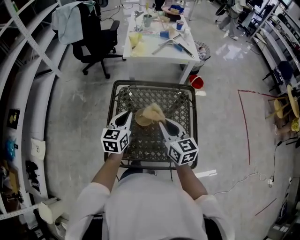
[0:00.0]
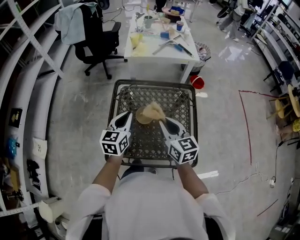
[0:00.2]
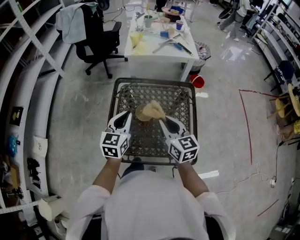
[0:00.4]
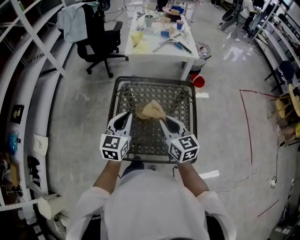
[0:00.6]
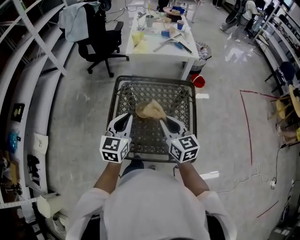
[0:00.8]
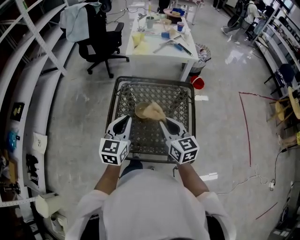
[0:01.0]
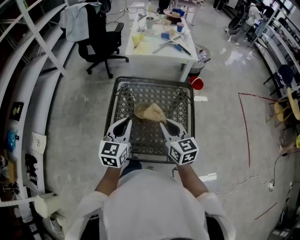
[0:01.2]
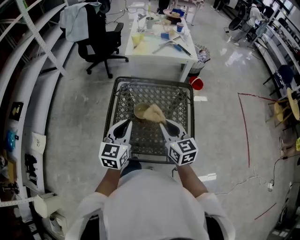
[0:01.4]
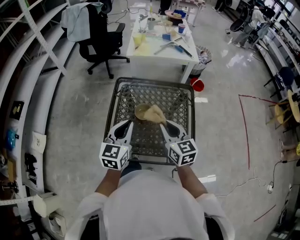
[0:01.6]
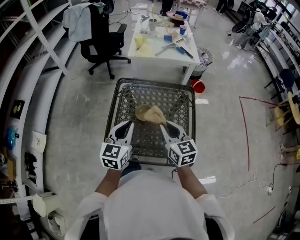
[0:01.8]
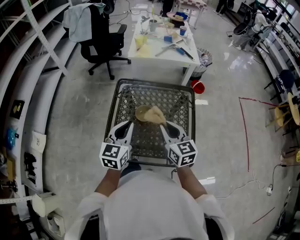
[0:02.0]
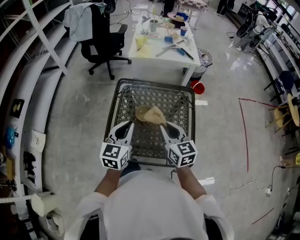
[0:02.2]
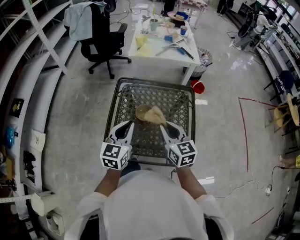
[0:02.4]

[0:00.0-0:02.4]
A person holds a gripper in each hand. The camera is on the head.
0.0 to 1.2 s: The right gripper heads backward, covering roughly 5 cm. Meanwhile the left gripper is displaced backward and upward by some 15 cm.
1.2 to 2.4 s: Both grippers stay about where they are.

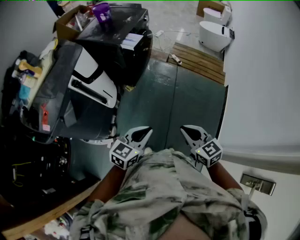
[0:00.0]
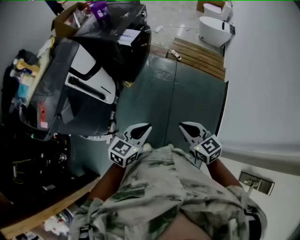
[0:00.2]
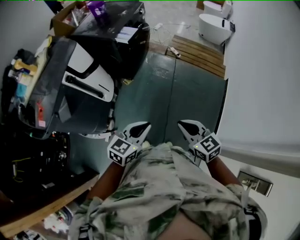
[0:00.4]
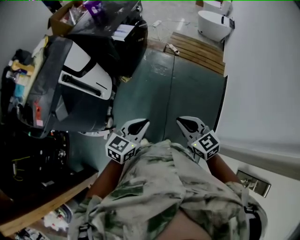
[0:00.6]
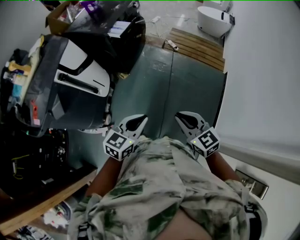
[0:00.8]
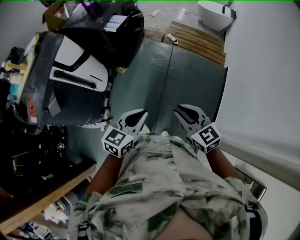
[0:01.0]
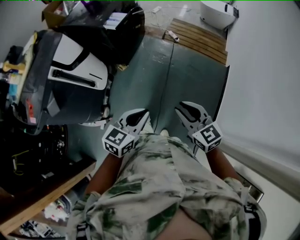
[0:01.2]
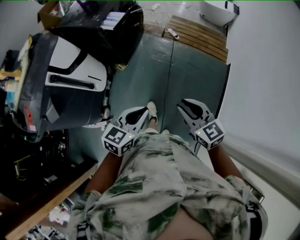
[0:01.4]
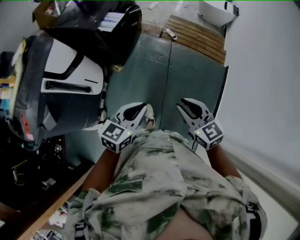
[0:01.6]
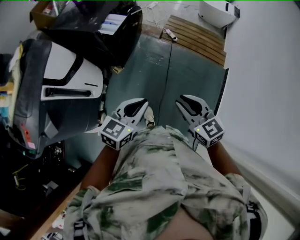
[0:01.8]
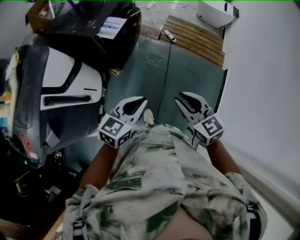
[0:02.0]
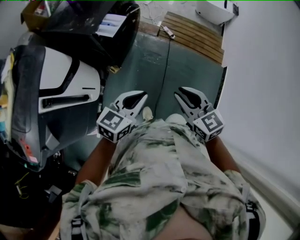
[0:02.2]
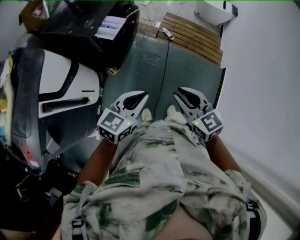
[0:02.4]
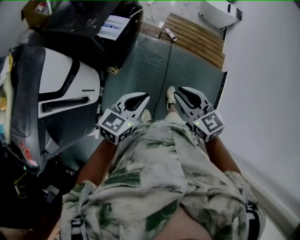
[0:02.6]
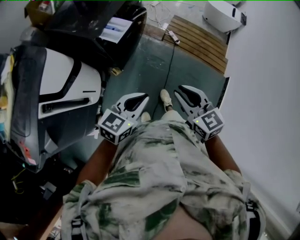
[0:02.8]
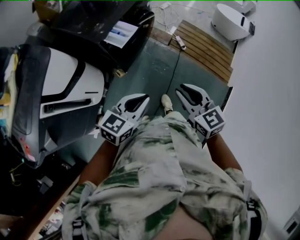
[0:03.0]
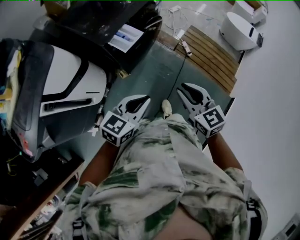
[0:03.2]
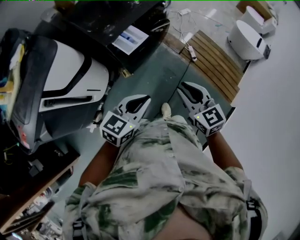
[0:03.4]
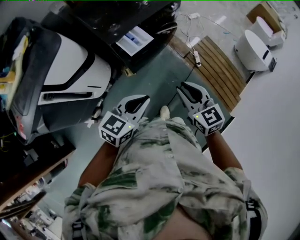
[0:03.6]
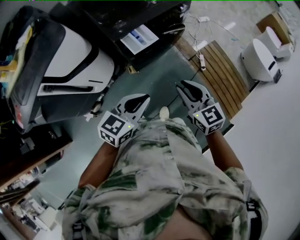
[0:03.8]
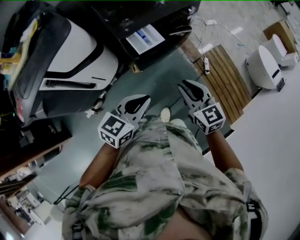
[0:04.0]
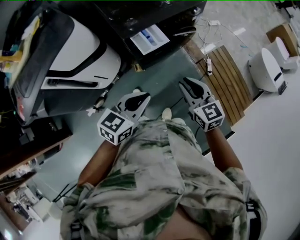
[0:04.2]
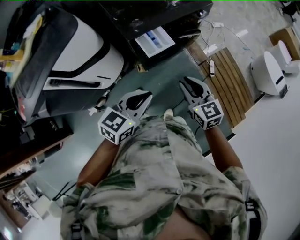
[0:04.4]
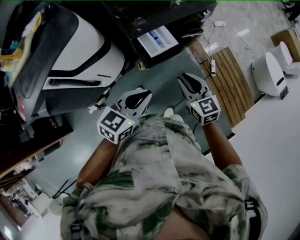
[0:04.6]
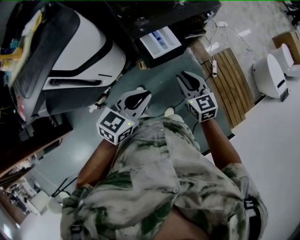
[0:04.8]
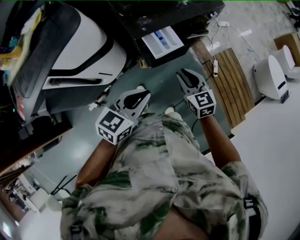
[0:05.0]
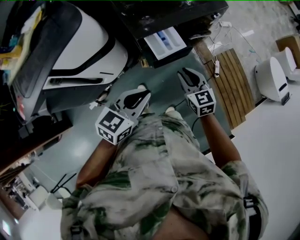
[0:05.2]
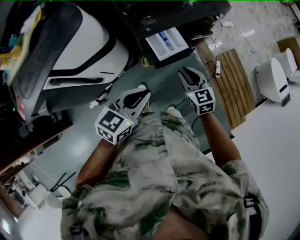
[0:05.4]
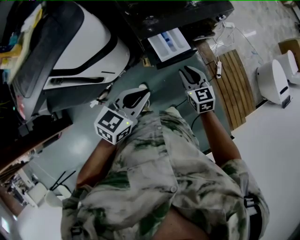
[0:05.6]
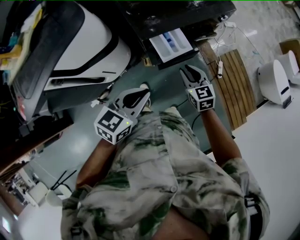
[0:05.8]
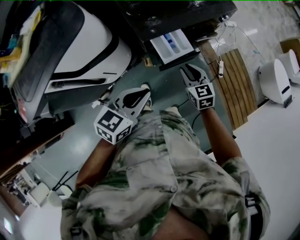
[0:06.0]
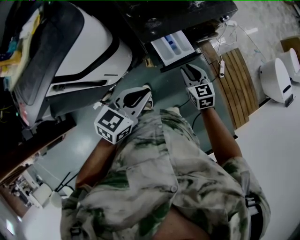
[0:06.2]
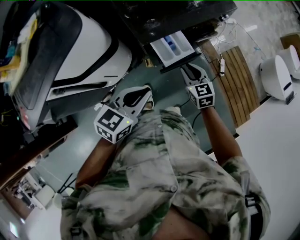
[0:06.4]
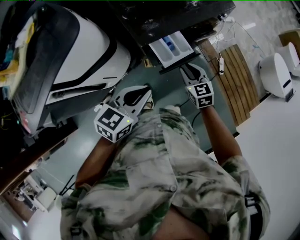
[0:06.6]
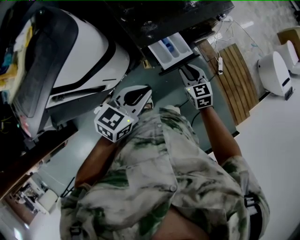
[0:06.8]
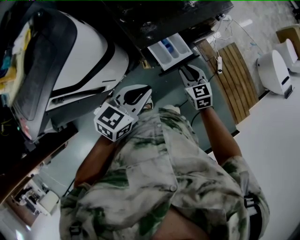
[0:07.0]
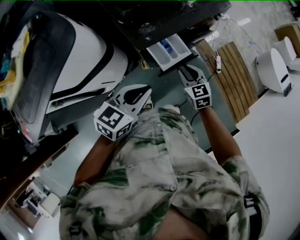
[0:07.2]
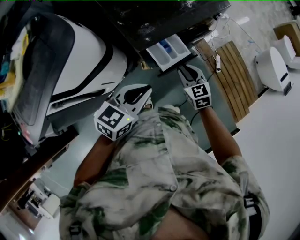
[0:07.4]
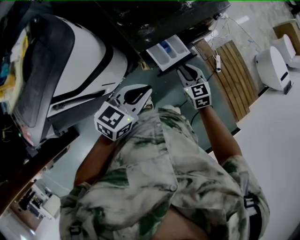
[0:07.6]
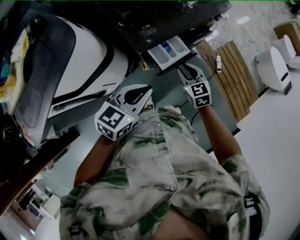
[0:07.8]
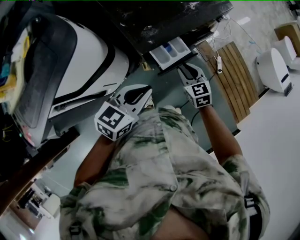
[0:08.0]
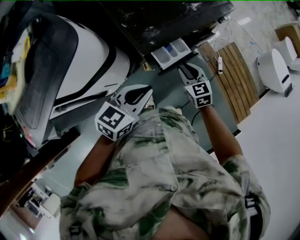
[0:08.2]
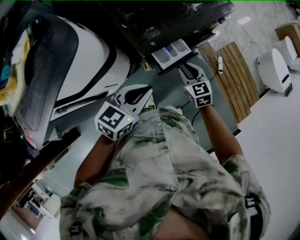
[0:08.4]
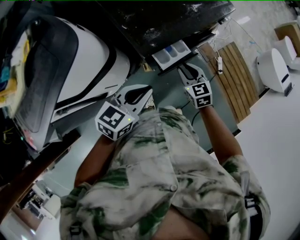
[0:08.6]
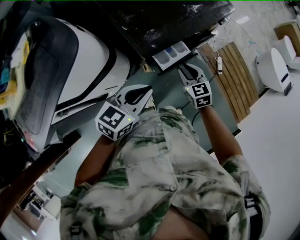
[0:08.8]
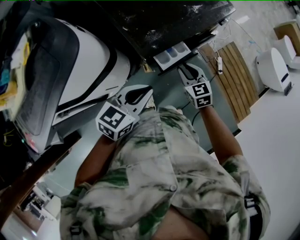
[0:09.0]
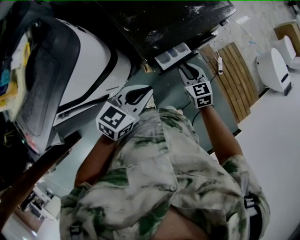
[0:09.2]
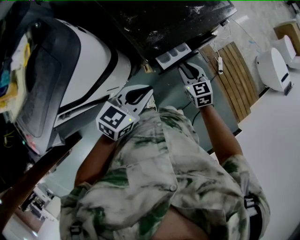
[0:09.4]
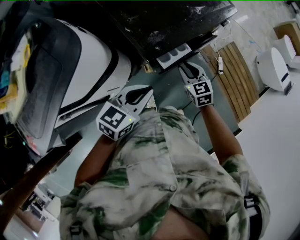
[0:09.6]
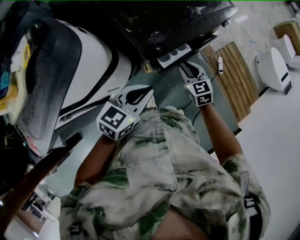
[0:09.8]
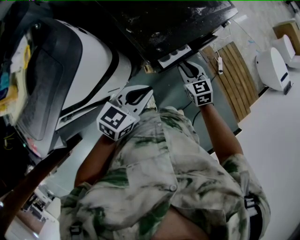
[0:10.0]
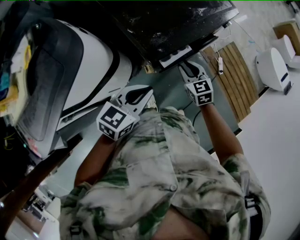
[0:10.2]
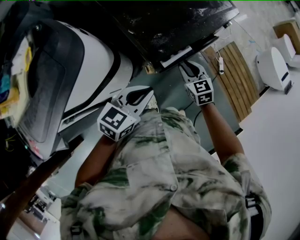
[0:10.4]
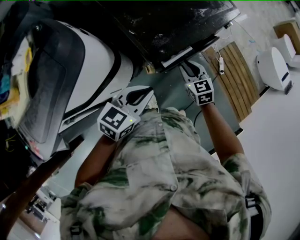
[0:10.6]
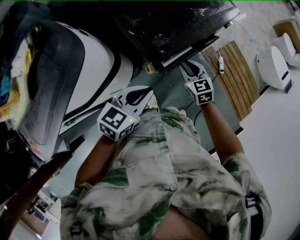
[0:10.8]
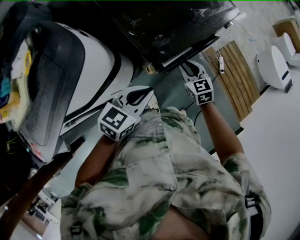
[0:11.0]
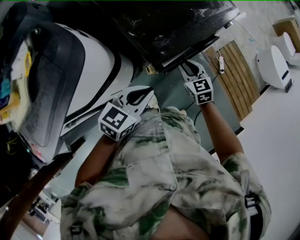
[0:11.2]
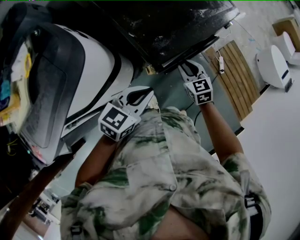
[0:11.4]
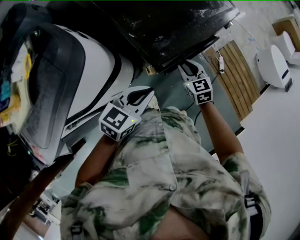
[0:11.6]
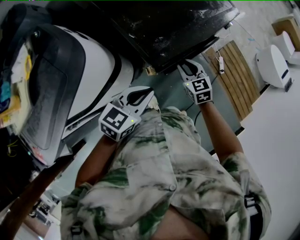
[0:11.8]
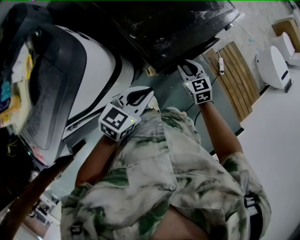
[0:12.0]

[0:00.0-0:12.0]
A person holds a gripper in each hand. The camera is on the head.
0.0 to 1.6 s: Both grippers move forward and to the right, roughly 20 cm. The right gripper opens up.
1.6 to 3.0 s: Both grippers move forward, about 25 cm.
3.0 to 4.4 s: The left gripper shifts roughly 15 cm forward, and turns by about 30 degrees. Meanwhile the right gripper travels forward by about 20 cm, and turns by about 20 degrees.
4.4 to 6.0 s: The right gripper goes about 20 cm forward, downward and to the left; the left gripper goes about 10 cm to the left and forward.
6.0 to 7.6 s: The left gripper is displaced forward by roughly 5 cm.
7.6 to 9.0 s: The grippers make only small movements.
9.0 to 10.4 s: The grippers make only small movements.
10.4 to 12.0 s: The grippers stay close to where they were, moving slightly.

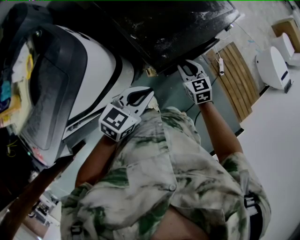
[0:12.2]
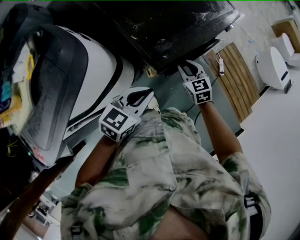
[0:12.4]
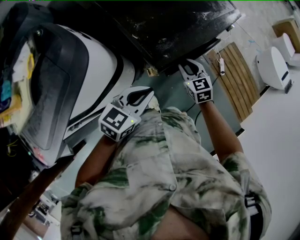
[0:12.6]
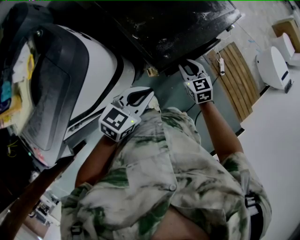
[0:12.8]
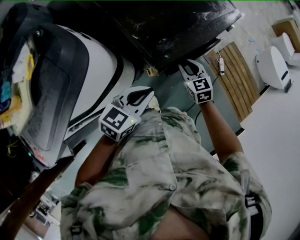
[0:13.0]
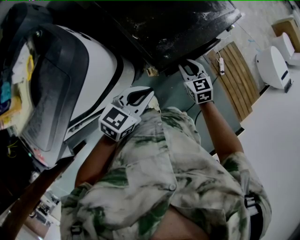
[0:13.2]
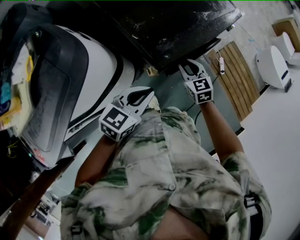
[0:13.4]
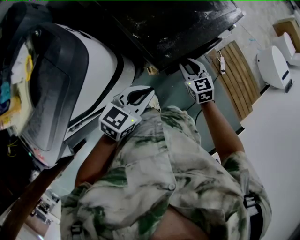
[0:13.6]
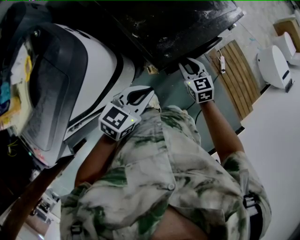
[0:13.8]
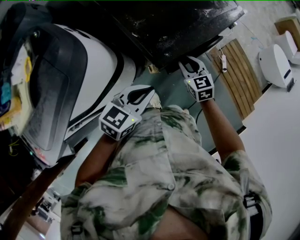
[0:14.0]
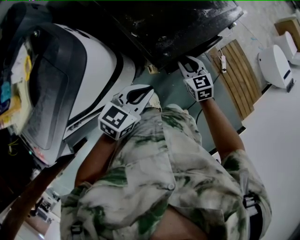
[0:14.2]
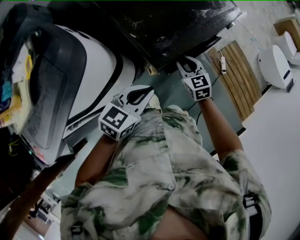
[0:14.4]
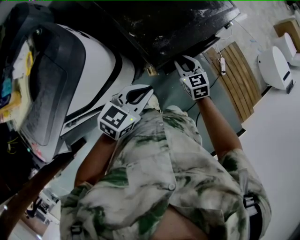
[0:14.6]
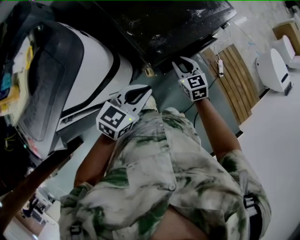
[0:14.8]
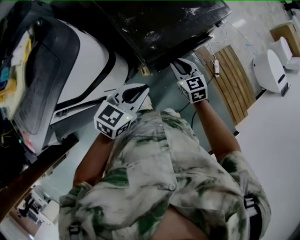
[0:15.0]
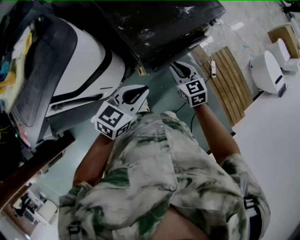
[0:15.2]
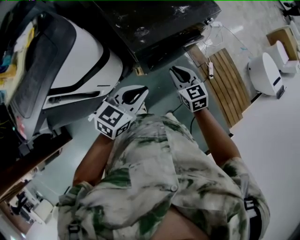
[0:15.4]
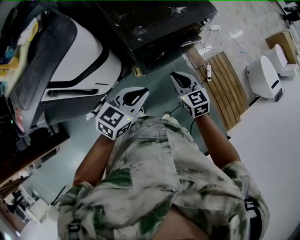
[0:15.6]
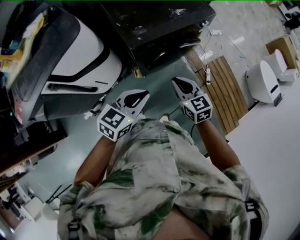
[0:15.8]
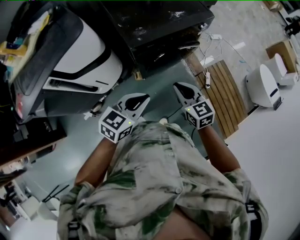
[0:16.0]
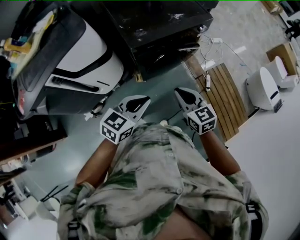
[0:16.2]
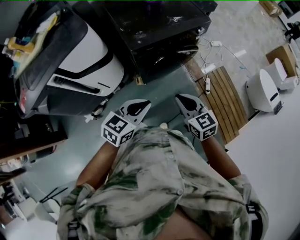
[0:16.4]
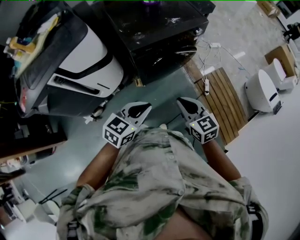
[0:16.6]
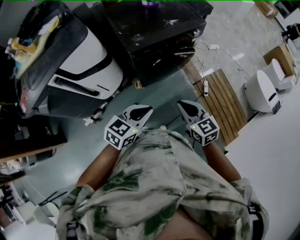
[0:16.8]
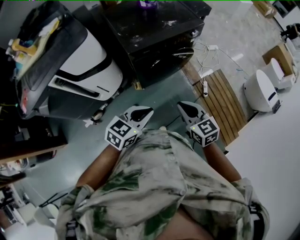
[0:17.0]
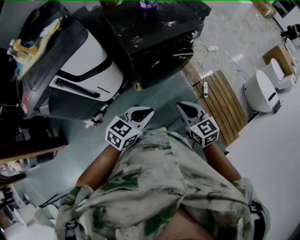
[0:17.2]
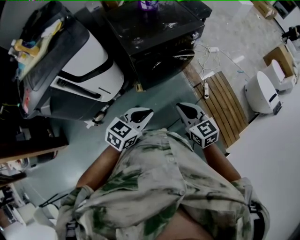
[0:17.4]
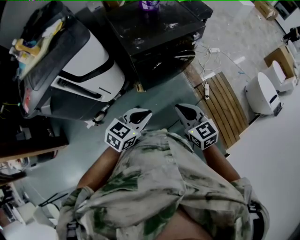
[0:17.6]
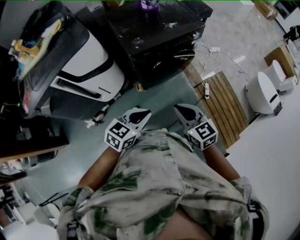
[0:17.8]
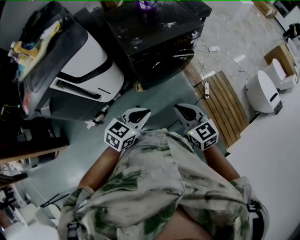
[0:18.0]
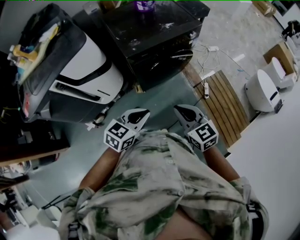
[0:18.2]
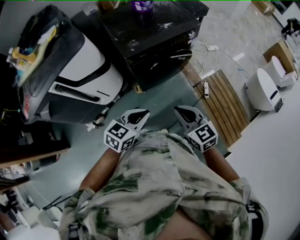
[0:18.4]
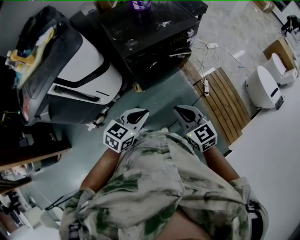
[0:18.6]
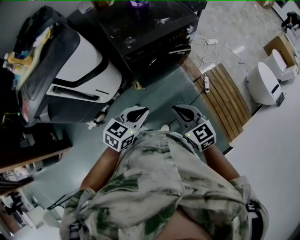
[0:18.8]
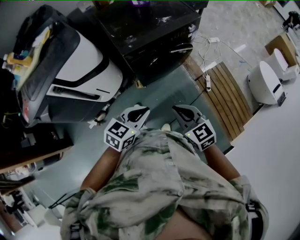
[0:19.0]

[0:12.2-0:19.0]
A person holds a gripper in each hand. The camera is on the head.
12.2 to 13.6 s: Neither gripper changes place.
13.6 to 15.0 s: The right gripper ends up some 5 cm from where it was. Meanwhile the left gripper is displaced to the right by roughly 5 cm.
15.0 to 16.2 s: The right gripper shifts about 30 cm backward, to the right and upward; the left gripper is displaced backward and to the right by approximately 20 cm.
16.2 to 17.6 s: Both grippers travel together backward, roughly 10 cm.
17.6 to 19.0 s: The grippers make only small movements.

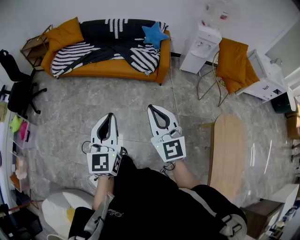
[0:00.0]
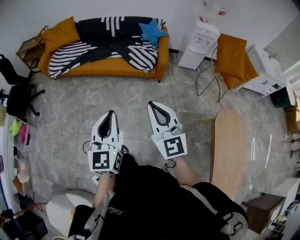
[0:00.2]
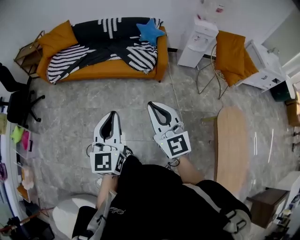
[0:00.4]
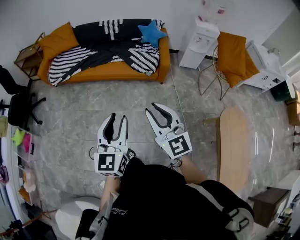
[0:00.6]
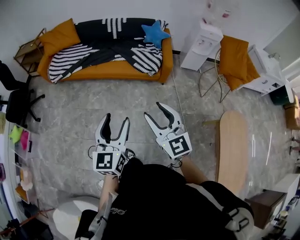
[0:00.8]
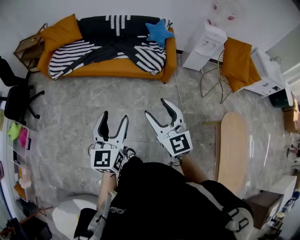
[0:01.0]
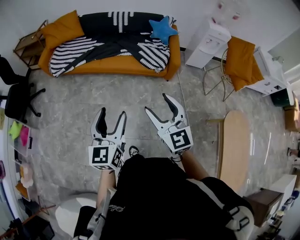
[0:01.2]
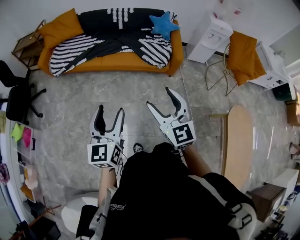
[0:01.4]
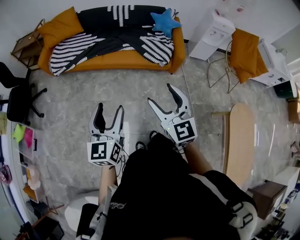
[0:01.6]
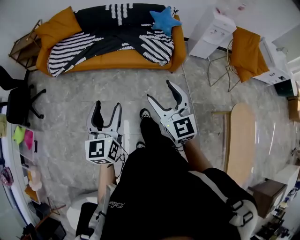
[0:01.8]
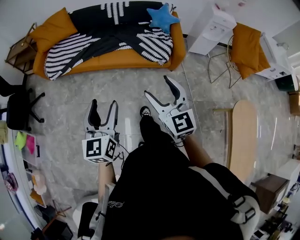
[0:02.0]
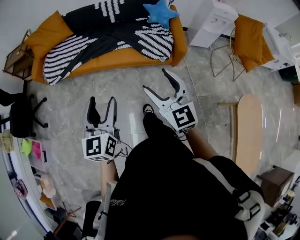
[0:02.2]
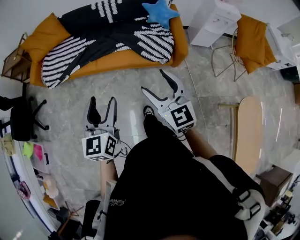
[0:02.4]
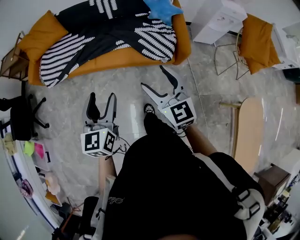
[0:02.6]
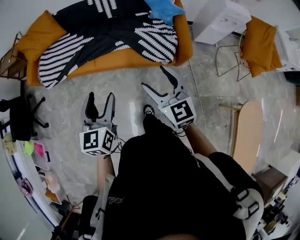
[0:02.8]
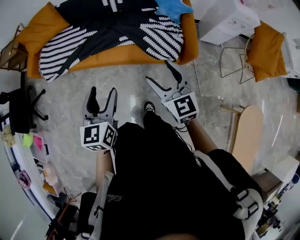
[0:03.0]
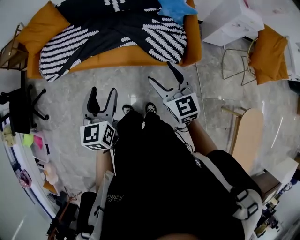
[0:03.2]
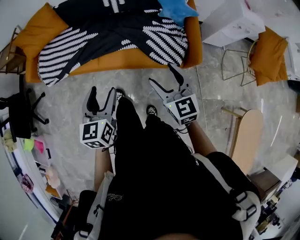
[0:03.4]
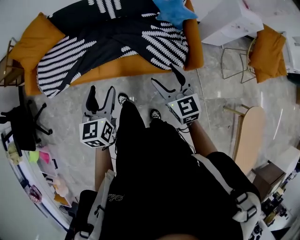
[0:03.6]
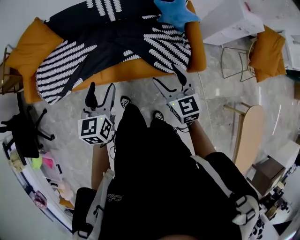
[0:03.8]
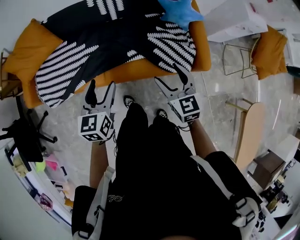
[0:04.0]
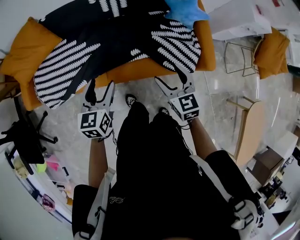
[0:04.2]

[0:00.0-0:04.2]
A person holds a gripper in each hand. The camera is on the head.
0.0 to 1.4 s: The left gripper heads to the left and forward, covering approximately 25 cm, and opens its fingers; the right gripper heads forward and to the left, covering about 20 cm, and opens its fingers.
1.4 to 2.8 s: The two grippers go roughly 35 cm forward.
2.8 to 4.2 s: The right gripper heads forward and downward, covering some 30 cm, and rotates some 20 degrees, while the left gripper travels forward and to the left by approximately 35 cm.
